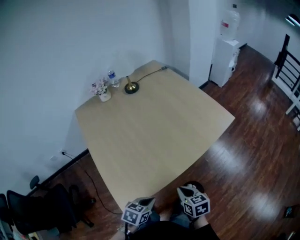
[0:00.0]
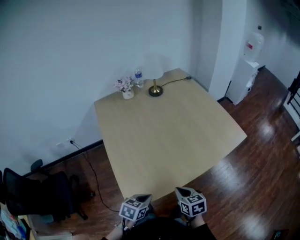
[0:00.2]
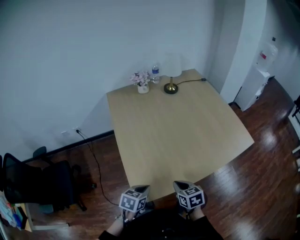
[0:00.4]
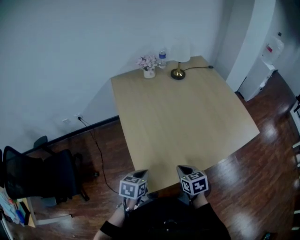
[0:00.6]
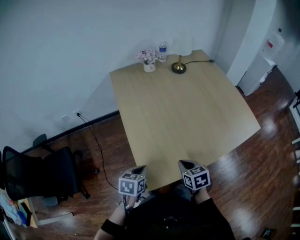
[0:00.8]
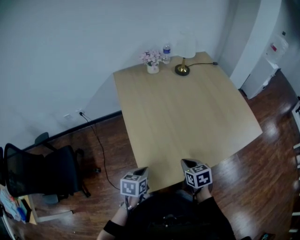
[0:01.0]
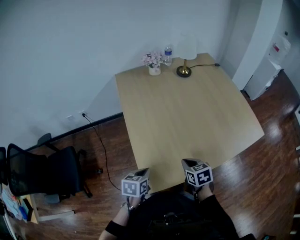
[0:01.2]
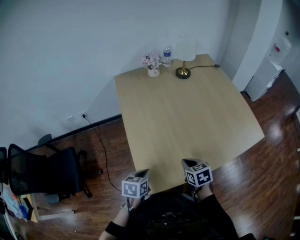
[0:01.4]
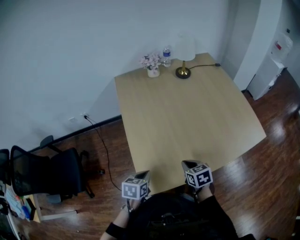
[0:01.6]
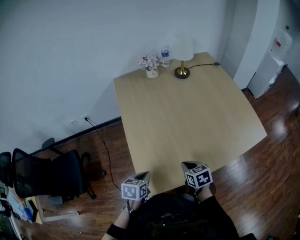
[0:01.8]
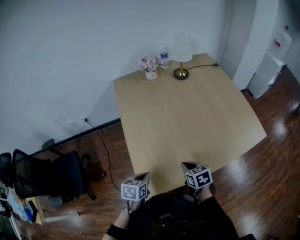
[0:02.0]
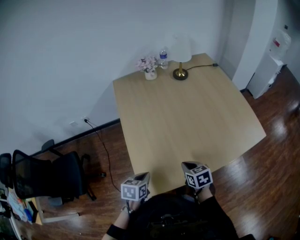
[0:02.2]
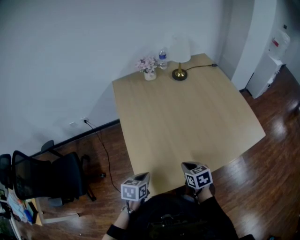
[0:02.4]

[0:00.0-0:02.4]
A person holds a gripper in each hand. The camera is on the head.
0:00.0 to 0:01.2: The left gripper moves to the left, some 25 cm, and rotates approximately 30 degrees. Meanwhile the right gripper moves to the left and forward, approximately 25 cm, and swivels roughly 20 degrees.
0:01.2 to 0:02.4: There are only small adjustments of the grippers.

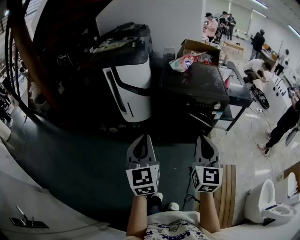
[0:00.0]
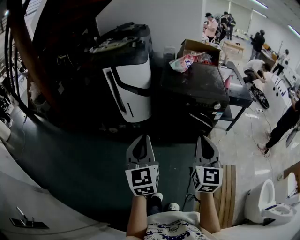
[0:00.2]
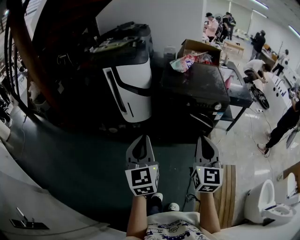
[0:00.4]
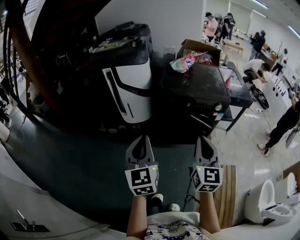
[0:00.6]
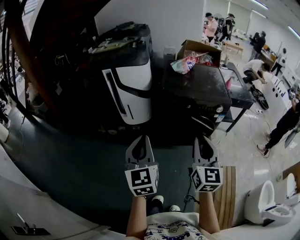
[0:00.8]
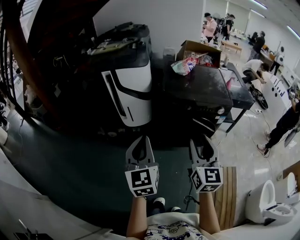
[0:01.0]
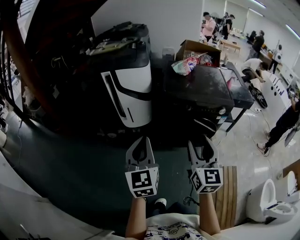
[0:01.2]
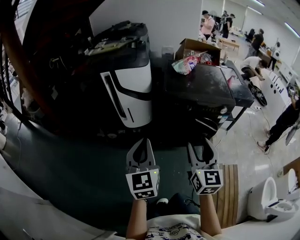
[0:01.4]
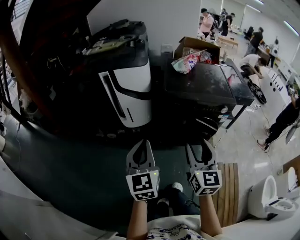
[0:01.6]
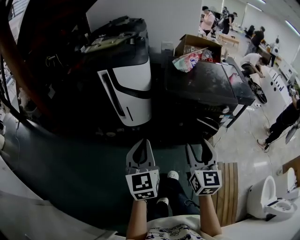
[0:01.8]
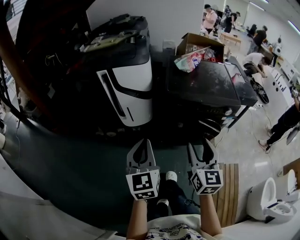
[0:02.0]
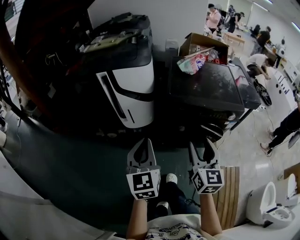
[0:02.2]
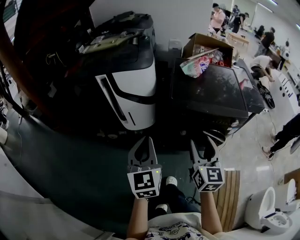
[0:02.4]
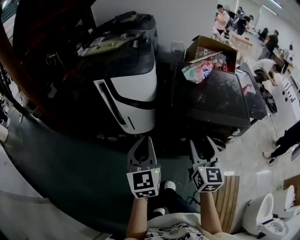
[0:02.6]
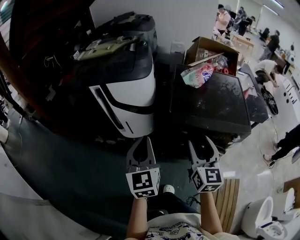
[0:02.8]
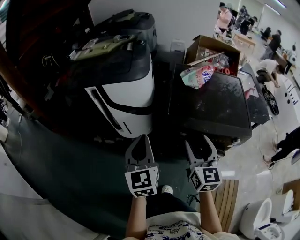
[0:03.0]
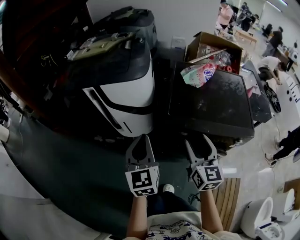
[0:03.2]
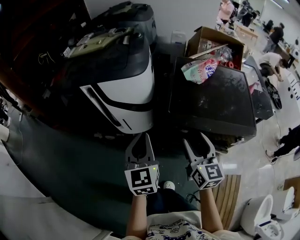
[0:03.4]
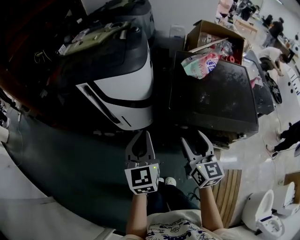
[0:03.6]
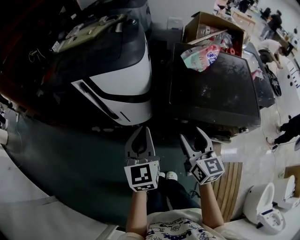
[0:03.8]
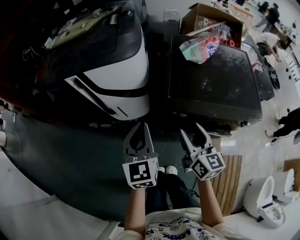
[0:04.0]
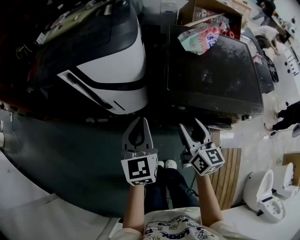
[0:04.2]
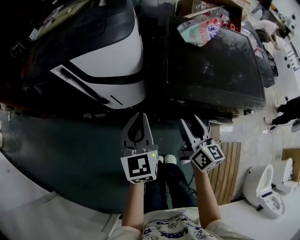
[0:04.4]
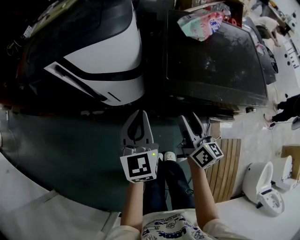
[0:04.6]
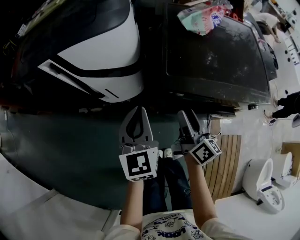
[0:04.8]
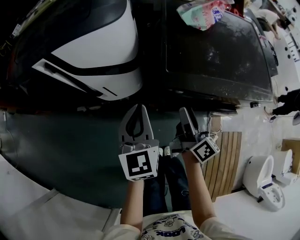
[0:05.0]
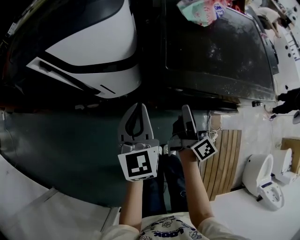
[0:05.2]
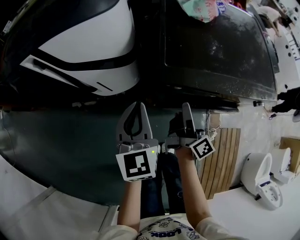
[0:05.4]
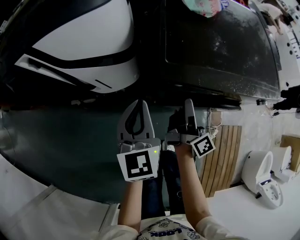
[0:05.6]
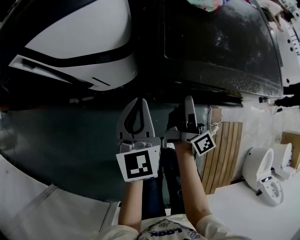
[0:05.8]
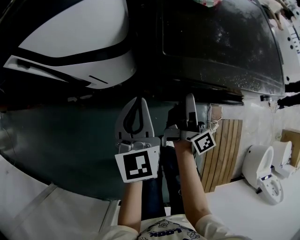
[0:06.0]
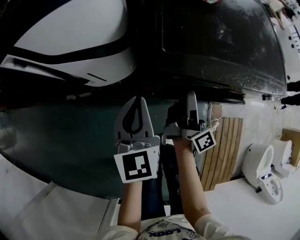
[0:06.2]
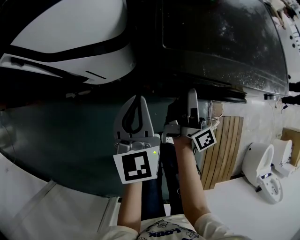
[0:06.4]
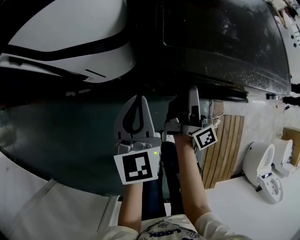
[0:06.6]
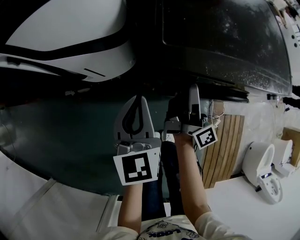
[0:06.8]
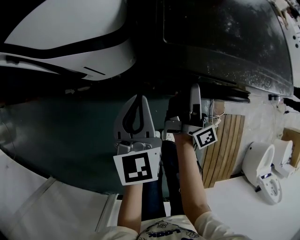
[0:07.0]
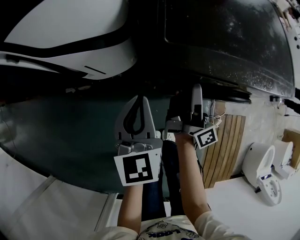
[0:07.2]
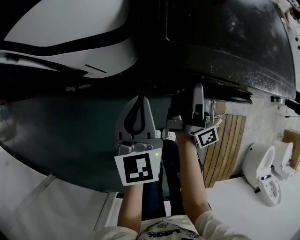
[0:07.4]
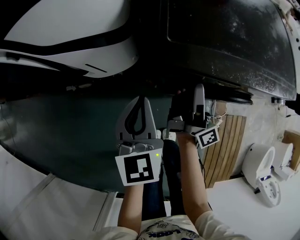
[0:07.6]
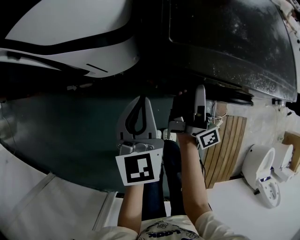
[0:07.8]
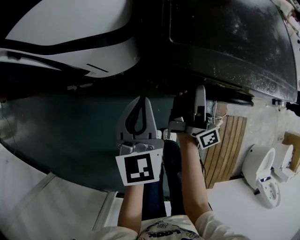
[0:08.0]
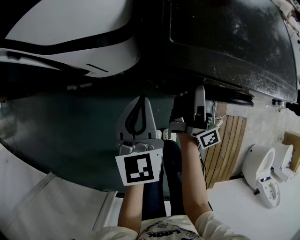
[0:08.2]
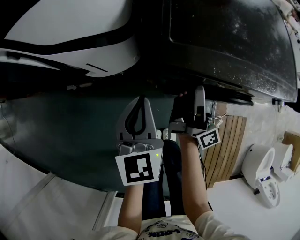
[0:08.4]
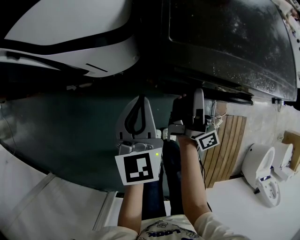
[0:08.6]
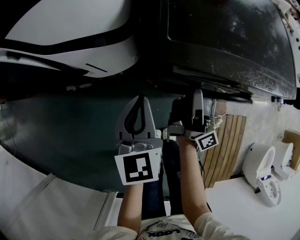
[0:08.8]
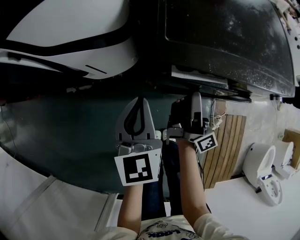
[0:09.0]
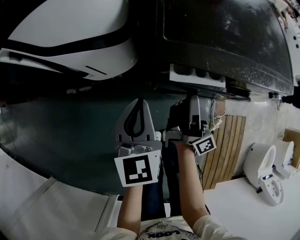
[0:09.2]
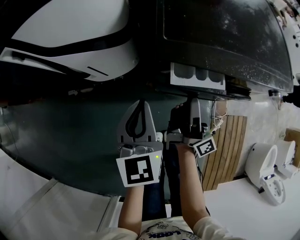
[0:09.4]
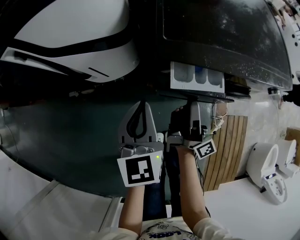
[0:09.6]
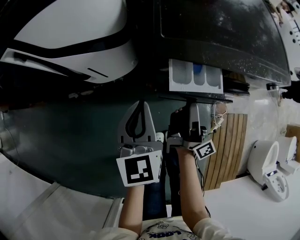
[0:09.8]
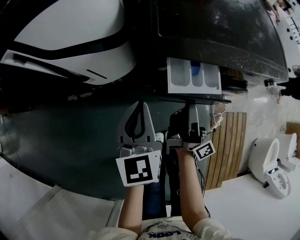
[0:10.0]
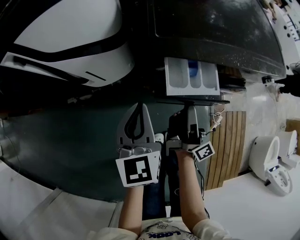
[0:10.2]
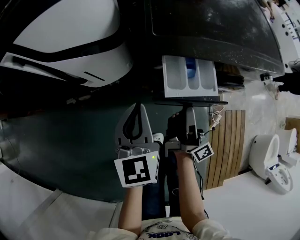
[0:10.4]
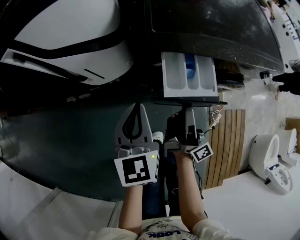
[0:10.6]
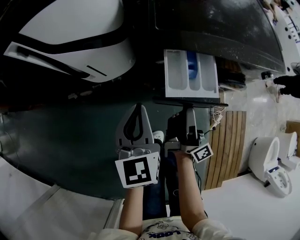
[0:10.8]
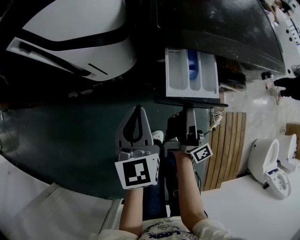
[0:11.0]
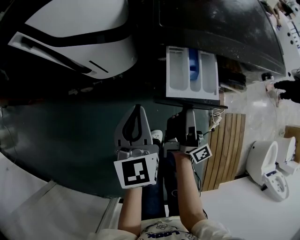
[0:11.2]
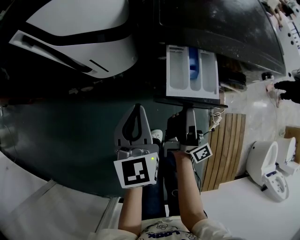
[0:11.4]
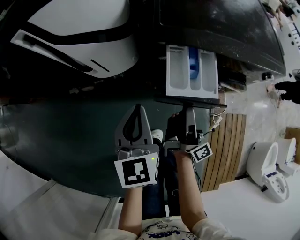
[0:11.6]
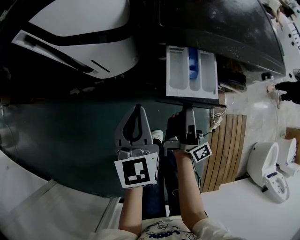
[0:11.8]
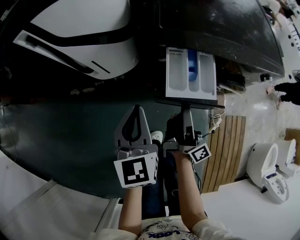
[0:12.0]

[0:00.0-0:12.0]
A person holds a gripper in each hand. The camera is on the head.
0:00.0 to 0:01.6: The two grippers go approximately 15 cm forward and to the left. The right gripper opens up.
0:01.6 to 0:03.0: Both grippers move forward, about 30 cm.
0:03.0 to 0:04.4: The two grippers go some 15 cm downward and forward. The right gripper turns by roughly 30 degrees.
0:04.4 to 0:06.0: Both grippers move downward, some 15 cm. The right gripper rotates around the line of its fingers by roughly 40 degrees, clockwise from behind.
0:06.0 to 0:07.6: The left gripper moves some 5 cm.
0:07.6 to 0:09.0: There are only small adjustments of the grippers.
0:09.0 to 0:10.4: The right gripper travels backward by some 10 cm. The left gripper shifts by roughly 5 cm.
0:10.4 to 0:12.0: The left gripper is displaced backward by some 5 cm.

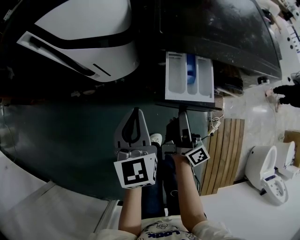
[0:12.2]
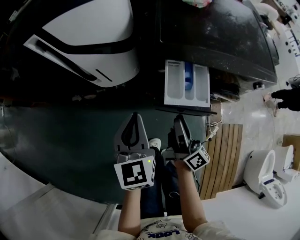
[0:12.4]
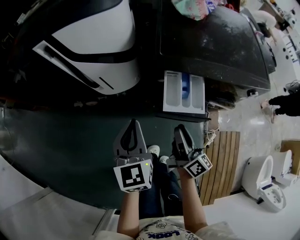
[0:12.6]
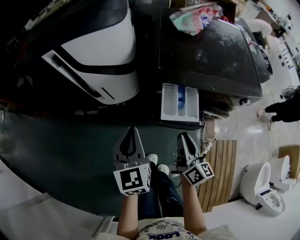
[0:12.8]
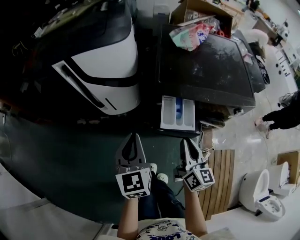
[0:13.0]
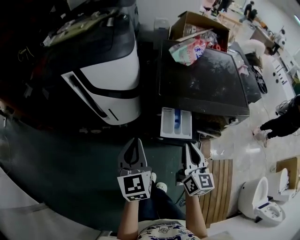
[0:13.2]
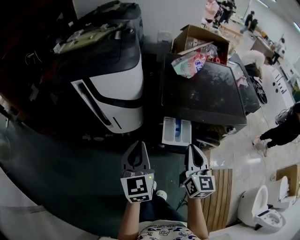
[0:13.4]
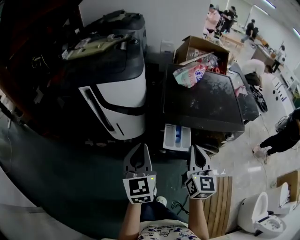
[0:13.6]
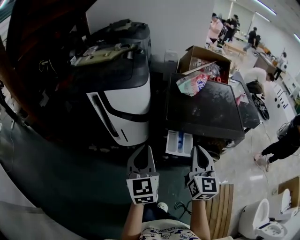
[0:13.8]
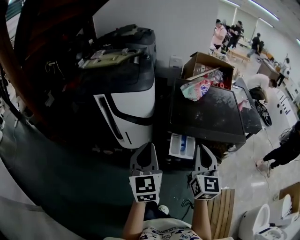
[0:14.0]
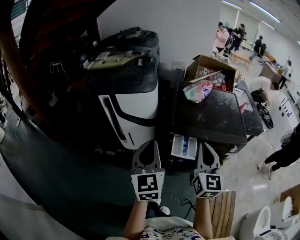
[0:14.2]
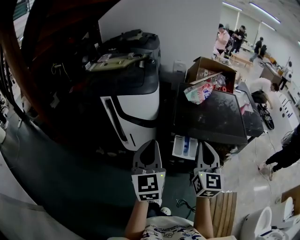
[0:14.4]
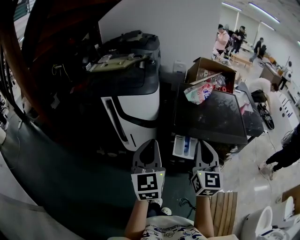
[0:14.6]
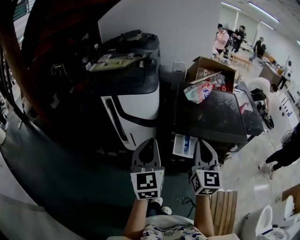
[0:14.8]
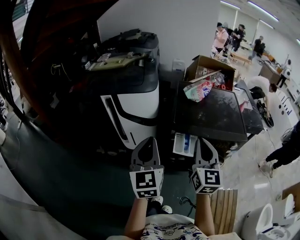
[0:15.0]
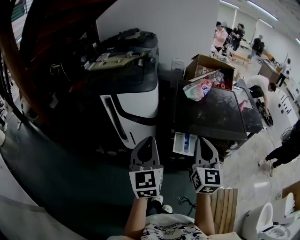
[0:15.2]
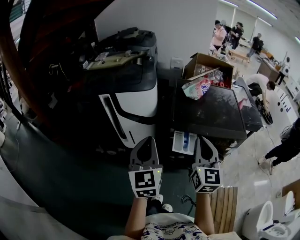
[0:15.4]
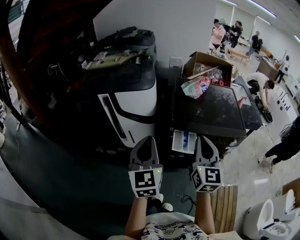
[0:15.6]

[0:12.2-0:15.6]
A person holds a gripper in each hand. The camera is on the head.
0:12.2 to 0:13.8: The grippers both shift upward by approximately 30 cm. The right gripper twists some 70 degrees counterclockwise, seen from behind, and closes its fingers.
0:13.8 to 0:15.6: The two grippers go some 5 cm upward.

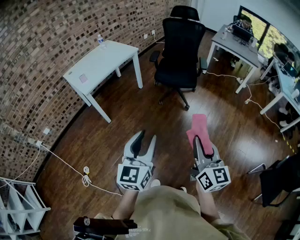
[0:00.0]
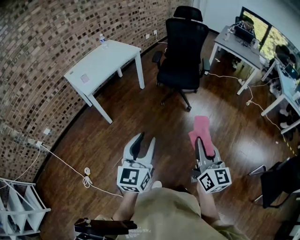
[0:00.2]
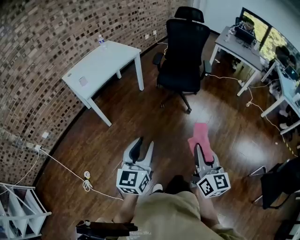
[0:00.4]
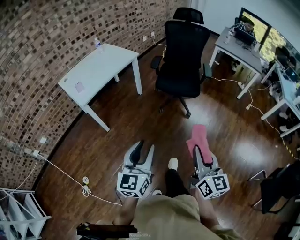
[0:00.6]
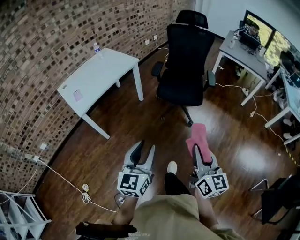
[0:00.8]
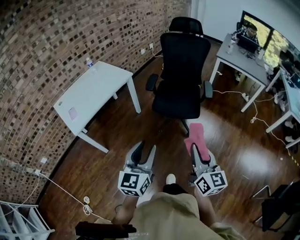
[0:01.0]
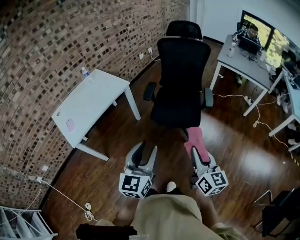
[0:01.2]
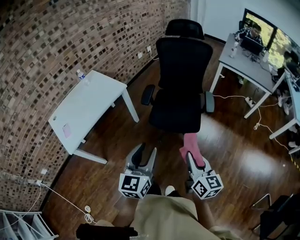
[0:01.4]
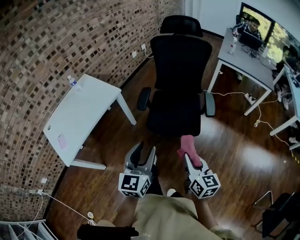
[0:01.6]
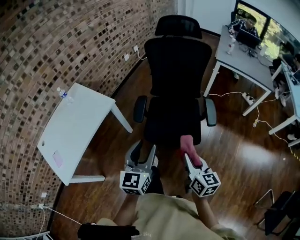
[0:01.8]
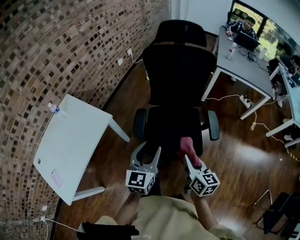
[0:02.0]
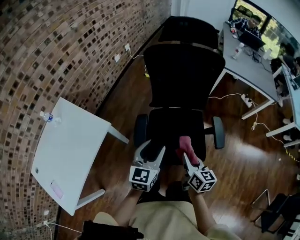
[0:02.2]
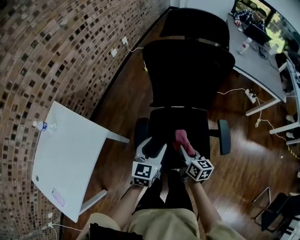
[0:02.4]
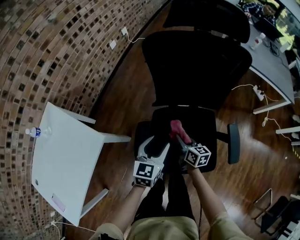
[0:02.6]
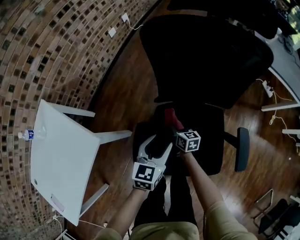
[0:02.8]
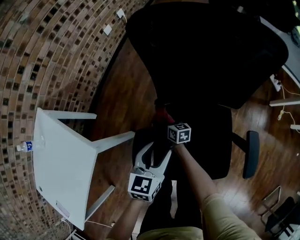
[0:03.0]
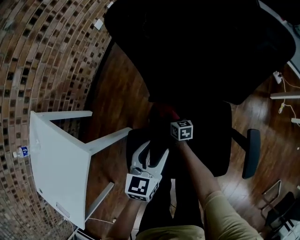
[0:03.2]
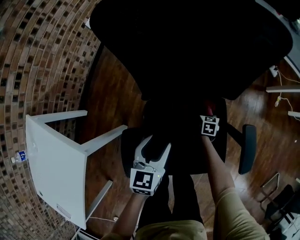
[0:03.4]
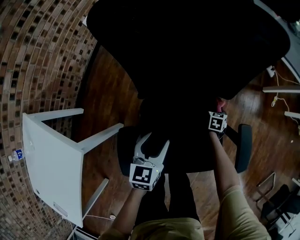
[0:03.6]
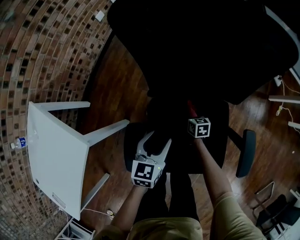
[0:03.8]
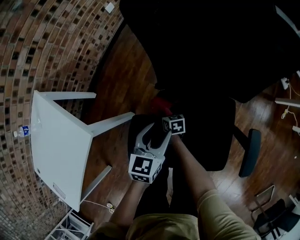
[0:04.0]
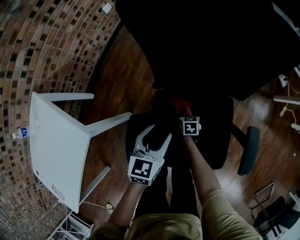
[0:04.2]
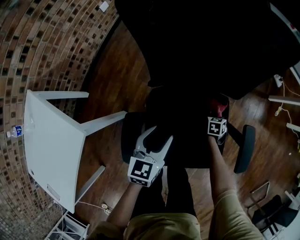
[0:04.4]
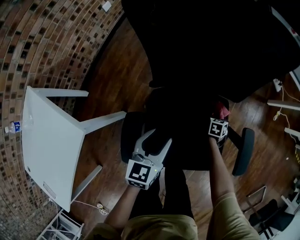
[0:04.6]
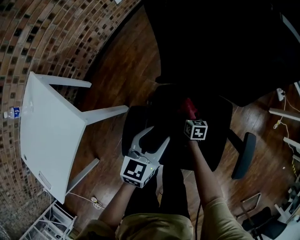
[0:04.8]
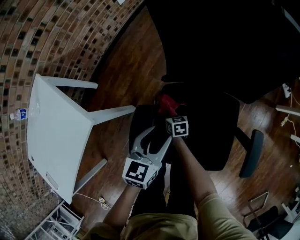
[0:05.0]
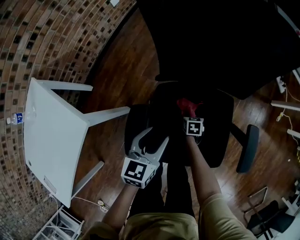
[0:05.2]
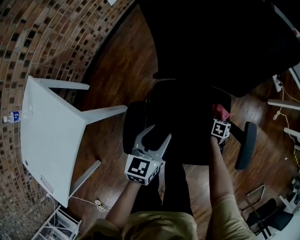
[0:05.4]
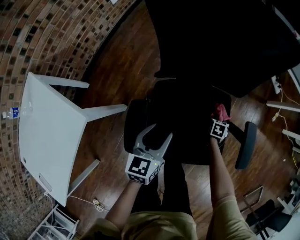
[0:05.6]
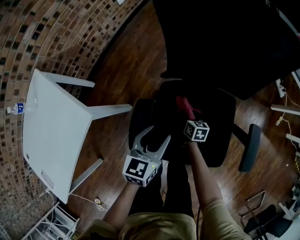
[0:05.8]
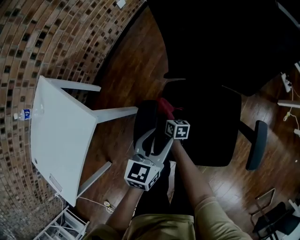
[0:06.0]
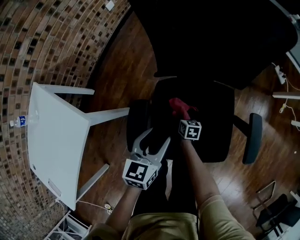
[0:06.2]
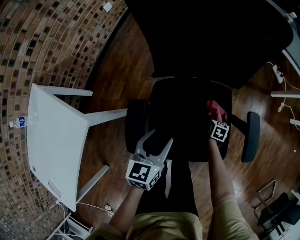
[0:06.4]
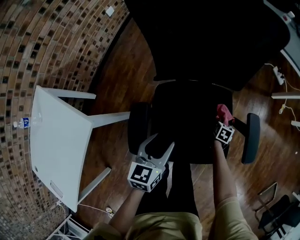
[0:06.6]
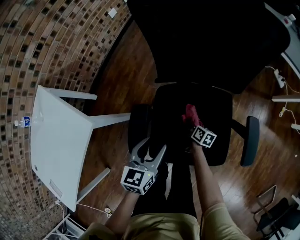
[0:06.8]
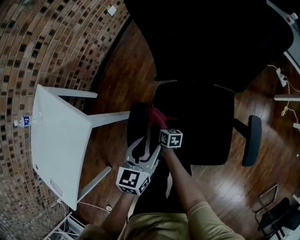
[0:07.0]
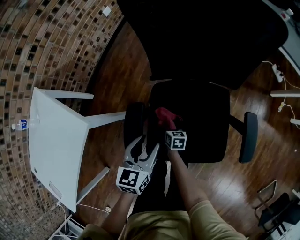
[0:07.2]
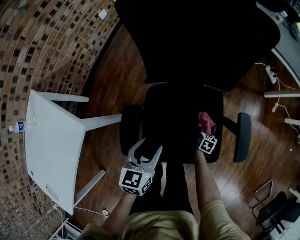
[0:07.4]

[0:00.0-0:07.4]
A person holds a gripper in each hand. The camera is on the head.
0:00.0 to 0:01.4: The two grippers travel together, forward, roughly 50 cm.
0:01.4 to 0:03.0: The pair of grippers is taken forward, approximately 60 cm. The left gripper travels downward by roughly 30 cm, and turns by approximately 30 degrees. The right gripper shifts approximately 50 cm downward, and rotates approximately 30 degrees.
0:03.0 to 0:04.4: The right gripper swings up and down, some 5 cm each way, with 2 reversals, and points its fingers roughly 30 degrees further downward.
0:04.4 to 0:06.0: The left gripper changes place by some 10 cm. The right gripper changes place by some 40 cm, and rotates roughly 50 degrees.
0:06.0 to 0:07.4: The right gripper changes place by roughly 35 cm, and swivels some 40 degrees.
